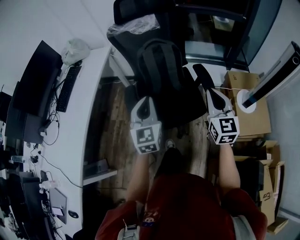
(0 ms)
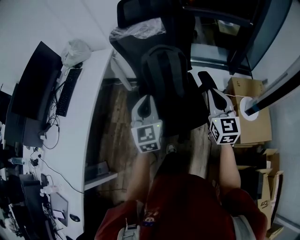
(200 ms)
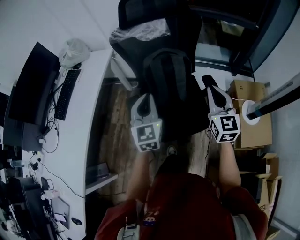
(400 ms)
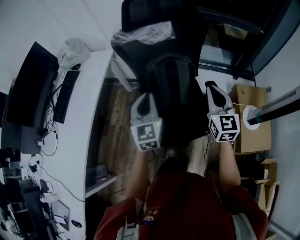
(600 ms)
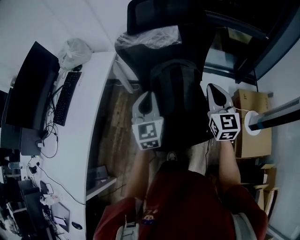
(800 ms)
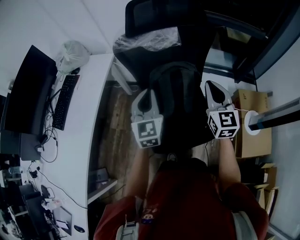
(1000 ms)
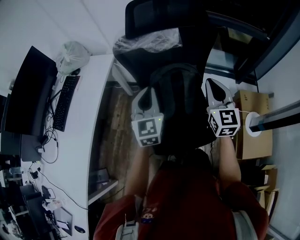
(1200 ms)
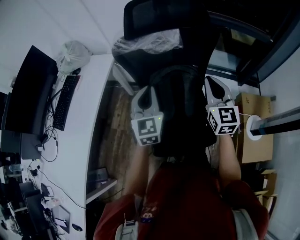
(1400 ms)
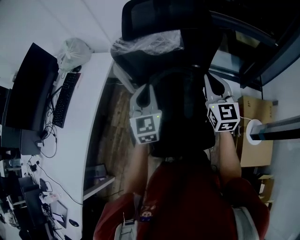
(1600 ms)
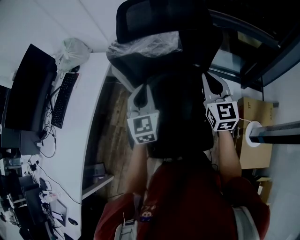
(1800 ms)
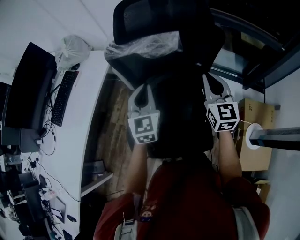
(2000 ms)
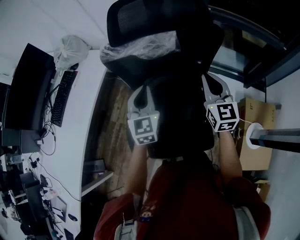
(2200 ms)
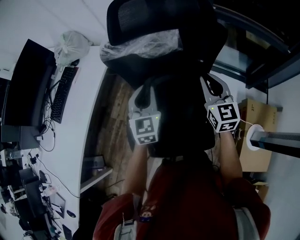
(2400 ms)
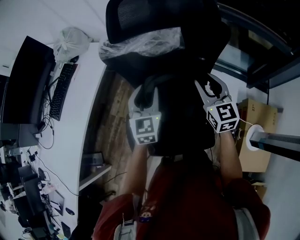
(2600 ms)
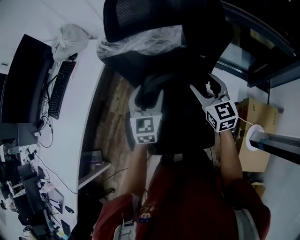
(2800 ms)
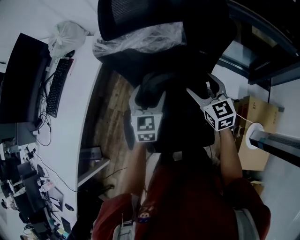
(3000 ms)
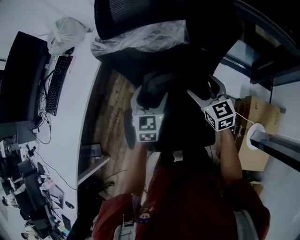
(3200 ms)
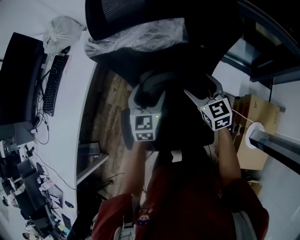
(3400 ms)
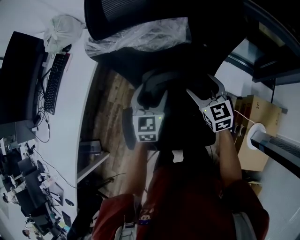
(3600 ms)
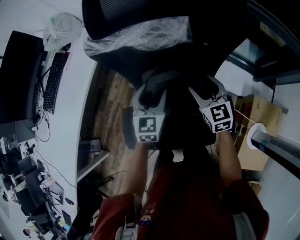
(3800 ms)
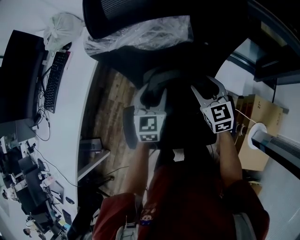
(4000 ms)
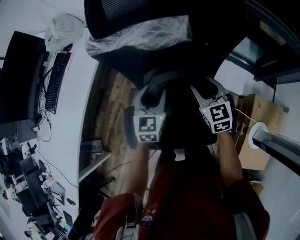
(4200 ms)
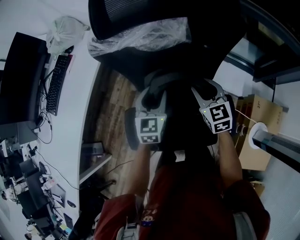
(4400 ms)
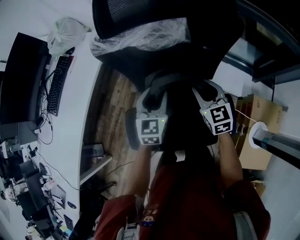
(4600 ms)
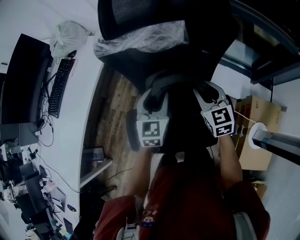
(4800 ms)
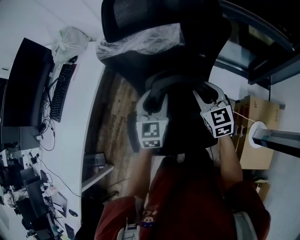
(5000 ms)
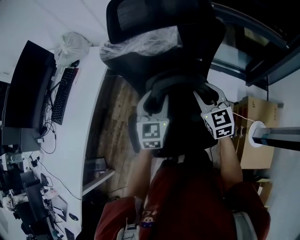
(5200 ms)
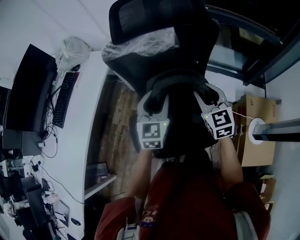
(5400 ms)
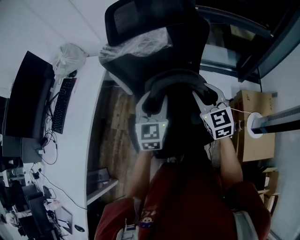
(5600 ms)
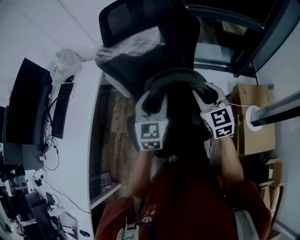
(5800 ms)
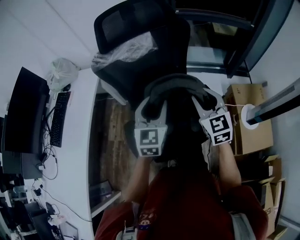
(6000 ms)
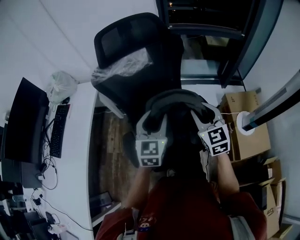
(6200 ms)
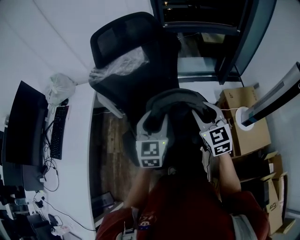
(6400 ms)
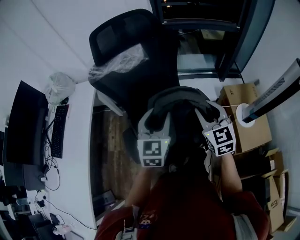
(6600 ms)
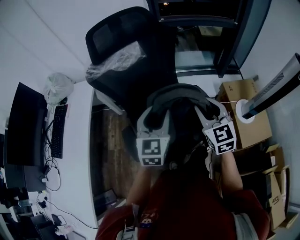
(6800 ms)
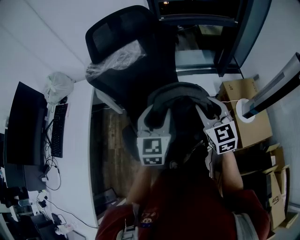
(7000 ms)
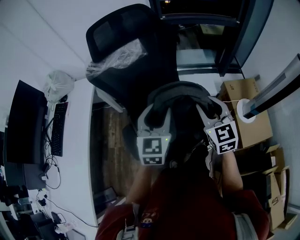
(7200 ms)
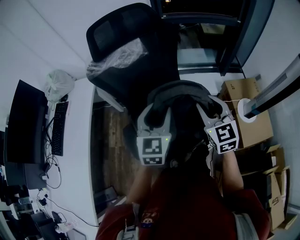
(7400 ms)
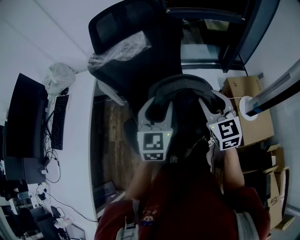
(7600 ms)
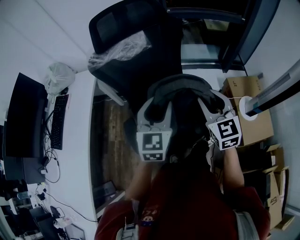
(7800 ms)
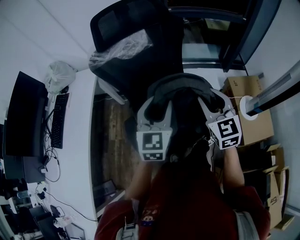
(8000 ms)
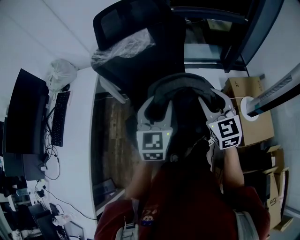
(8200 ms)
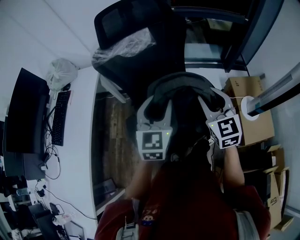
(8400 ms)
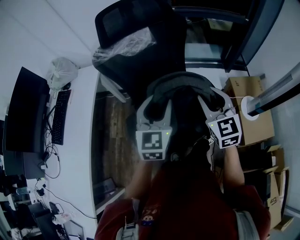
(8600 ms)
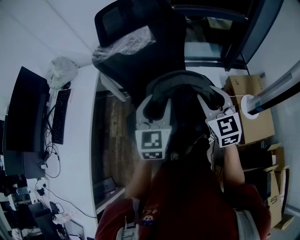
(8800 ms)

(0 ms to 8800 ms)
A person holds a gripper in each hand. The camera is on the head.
0 ms - 1400 ms: The grippers both shift forward by approximately 30 cm.
1400 ms - 3000 ms: The right gripper moves forward and downward, roughly 20 cm, turns by approximately 30 degrees, and opens its fingers. Meanwhile the left gripper is displaced downward and forward by about 15 cm, and opens its fingers.
3000 ms - 4400 ms: The right gripper moves approximately 5 cm, and closes up, while the left gripper closes.
4400 ms - 5800 ms: Both grippers travel together backward and upward, some 20 cm. The right gripper rotates some 20 degrees.
5800 ms - 7400 ms: The two grippers go approximately 10 cm backward and to the right.
7400 ms - 8800 ms: There are only small adjustments of the grippers.

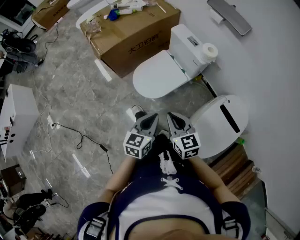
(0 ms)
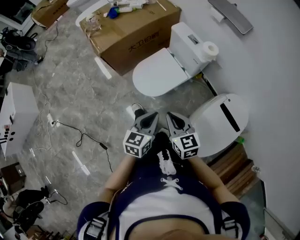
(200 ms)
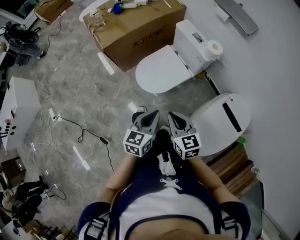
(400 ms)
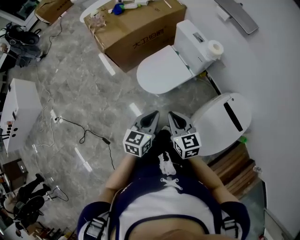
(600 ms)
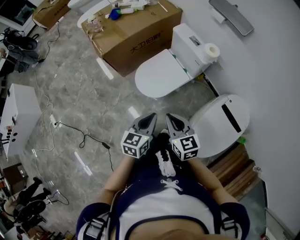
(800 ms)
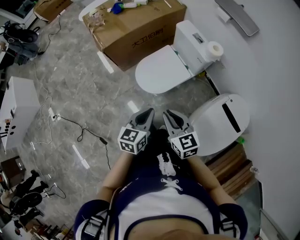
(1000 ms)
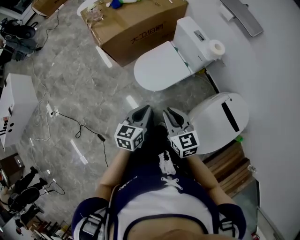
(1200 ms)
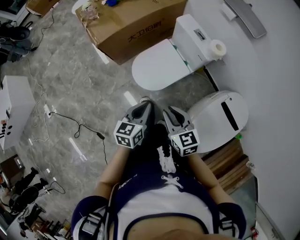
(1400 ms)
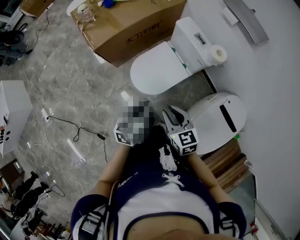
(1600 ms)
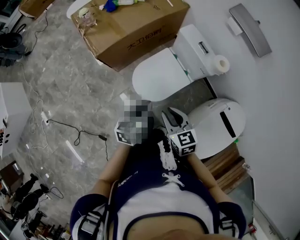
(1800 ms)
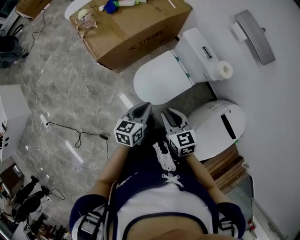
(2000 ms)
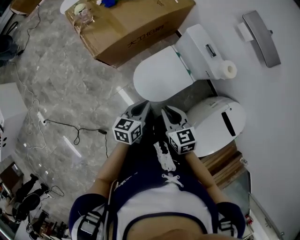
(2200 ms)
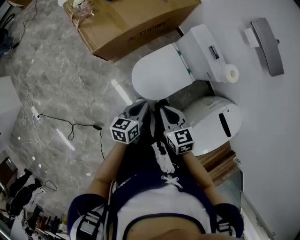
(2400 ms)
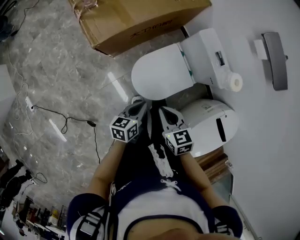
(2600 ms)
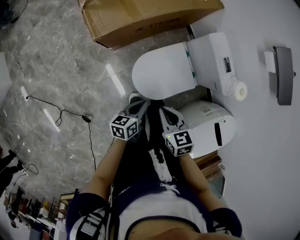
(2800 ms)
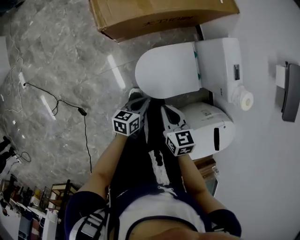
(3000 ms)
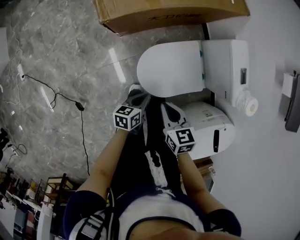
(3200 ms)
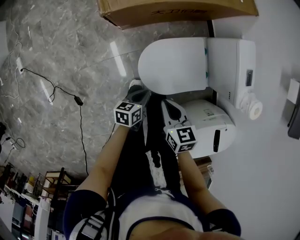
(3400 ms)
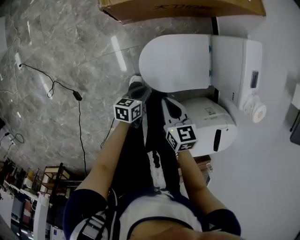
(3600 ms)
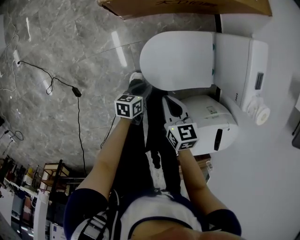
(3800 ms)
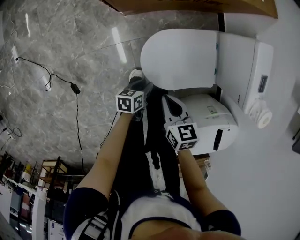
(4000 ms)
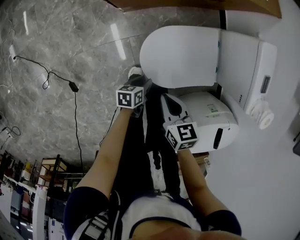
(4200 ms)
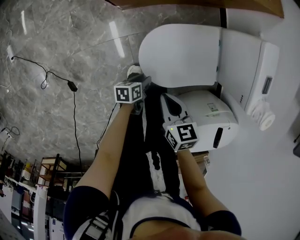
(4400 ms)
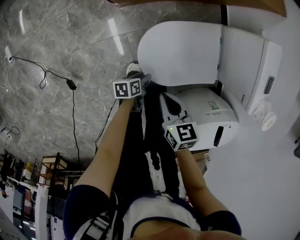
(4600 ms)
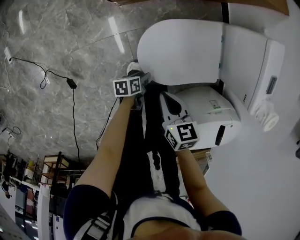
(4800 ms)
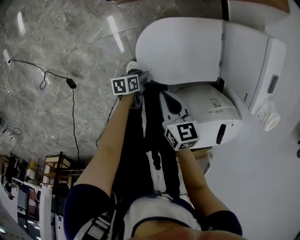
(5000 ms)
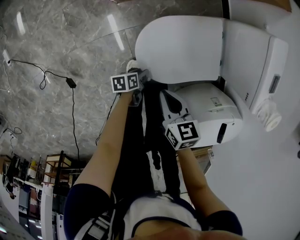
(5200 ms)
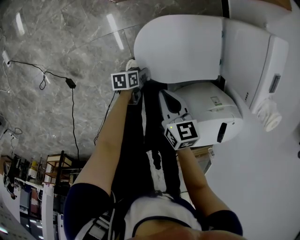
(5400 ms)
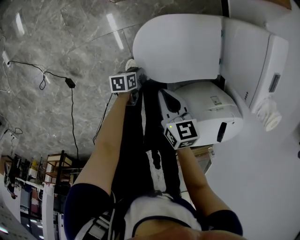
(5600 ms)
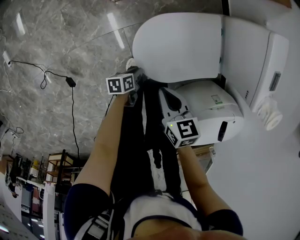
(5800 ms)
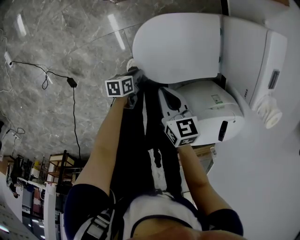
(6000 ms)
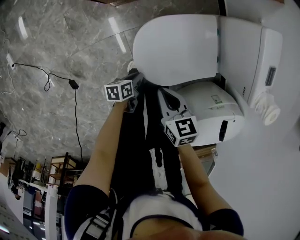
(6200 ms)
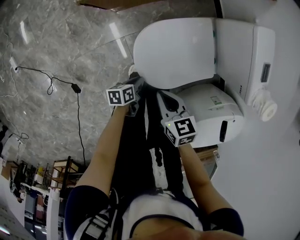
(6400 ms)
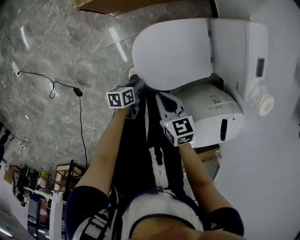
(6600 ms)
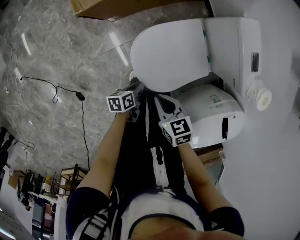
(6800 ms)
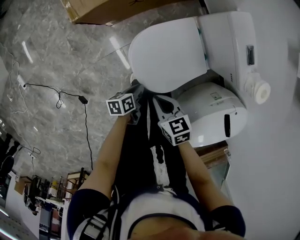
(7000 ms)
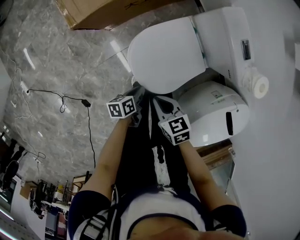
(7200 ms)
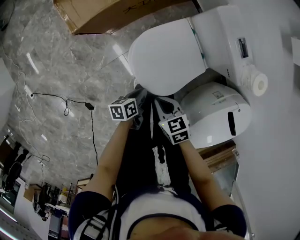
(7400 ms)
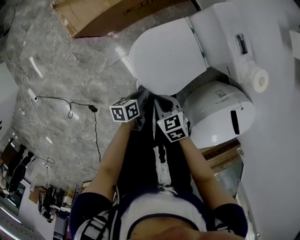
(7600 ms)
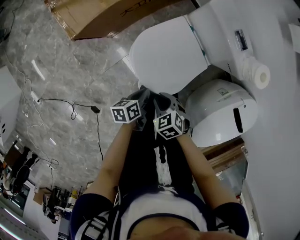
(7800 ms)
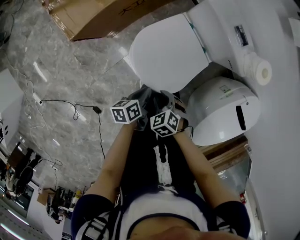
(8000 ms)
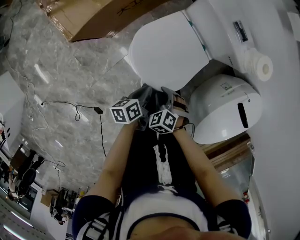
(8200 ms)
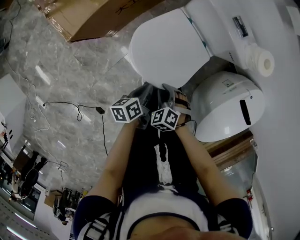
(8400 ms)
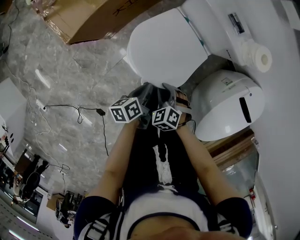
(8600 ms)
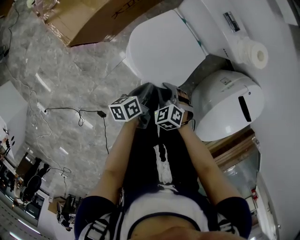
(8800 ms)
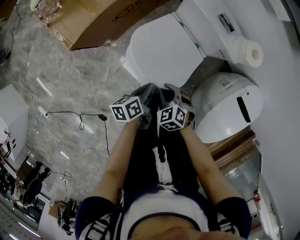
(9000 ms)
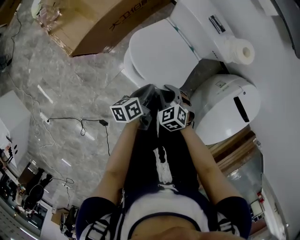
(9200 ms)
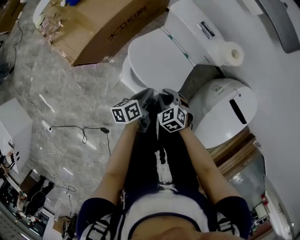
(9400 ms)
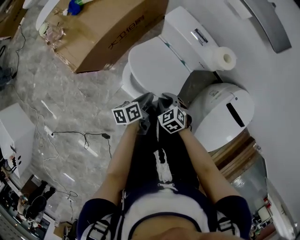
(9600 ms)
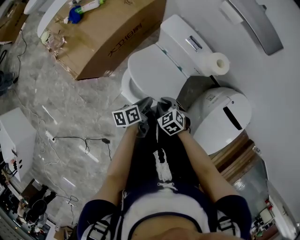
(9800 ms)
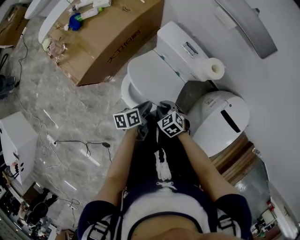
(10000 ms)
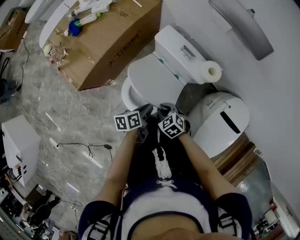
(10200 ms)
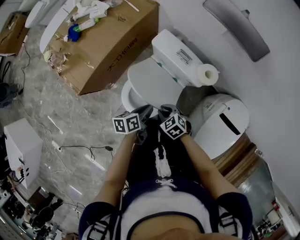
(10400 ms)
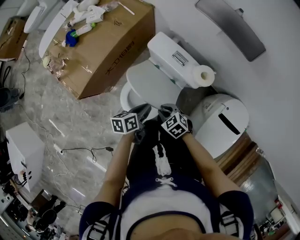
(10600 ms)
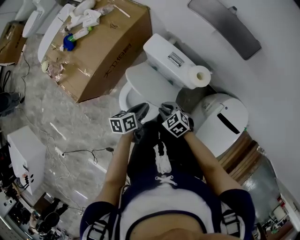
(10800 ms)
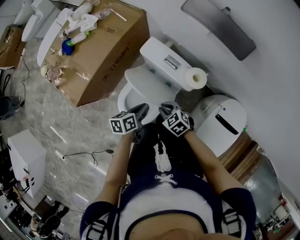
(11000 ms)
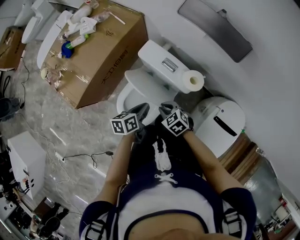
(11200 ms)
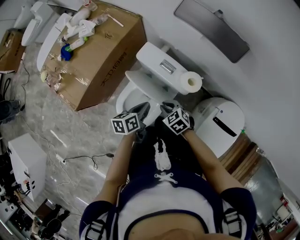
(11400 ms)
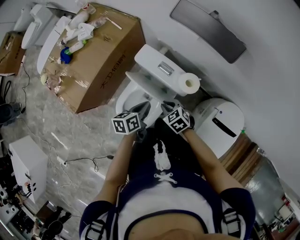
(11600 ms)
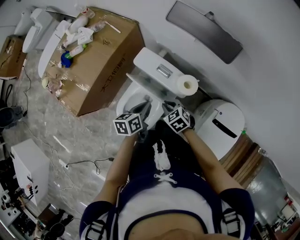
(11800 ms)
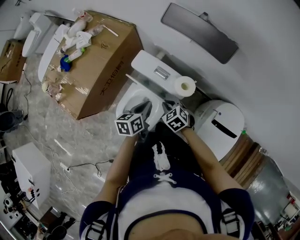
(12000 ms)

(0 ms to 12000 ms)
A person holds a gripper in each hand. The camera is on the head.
0 ms - 1600 ms: The left gripper shifts some 15 cm forward and to the left, while the right gripper shifts some 10 cm forward.
1600 ms - 3000 ms: The left gripper travels downward, forward and to the left by approximately 25 cm, and changes its angle by some 30 degrees; the right gripper travels forward, downward and to the left by roughly 20 cm.
3000 ms - 4400 ms: The left gripper moves downward, approximately 20 cm, rotates roughly 20 degrees, and opens up, while the right gripper travels downward by roughly 15 cm.
4400 ms - 6000 ms: The left gripper closes its fingers.
6000 ms - 7600 ms: The left gripper travels upward by about 20 cm. The right gripper moves roughly 5 cm.
7600 ms - 9000 ms: The left gripper goes approximately 5 cm upward; the right gripper rotates some 20 degrees.
9000 ms - 10400 ms: Both grippers move upward, to the right and forward, some 15 cm.
10400 ms - 12000 ms: The right gripper travels to the right and forward by approximately 15 cm, while the left gripper is displaced forward, to the right and upward by about 15 cm.

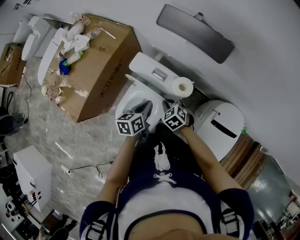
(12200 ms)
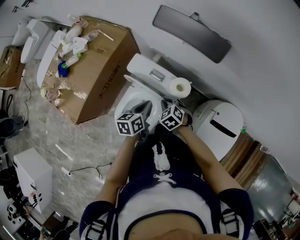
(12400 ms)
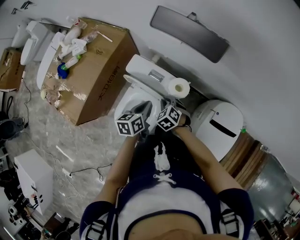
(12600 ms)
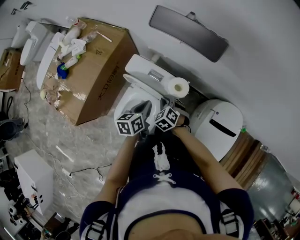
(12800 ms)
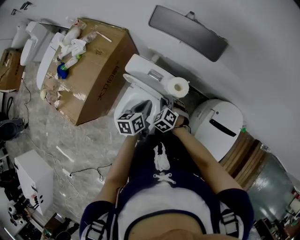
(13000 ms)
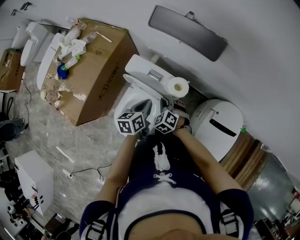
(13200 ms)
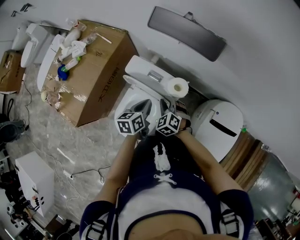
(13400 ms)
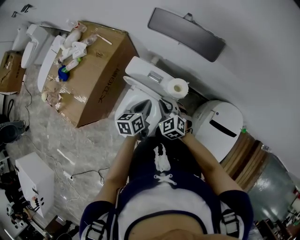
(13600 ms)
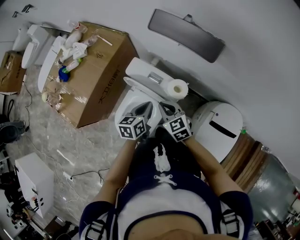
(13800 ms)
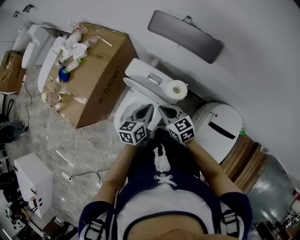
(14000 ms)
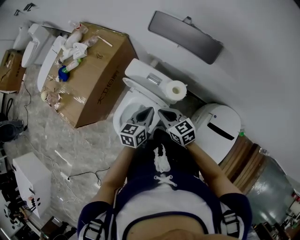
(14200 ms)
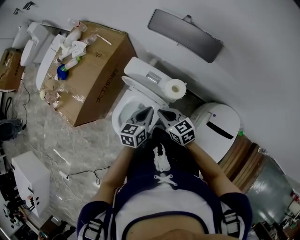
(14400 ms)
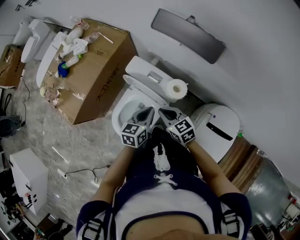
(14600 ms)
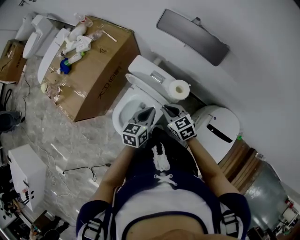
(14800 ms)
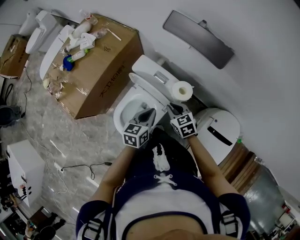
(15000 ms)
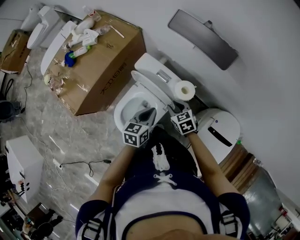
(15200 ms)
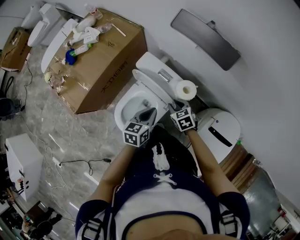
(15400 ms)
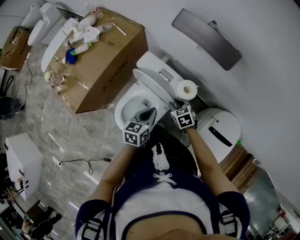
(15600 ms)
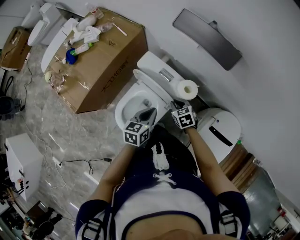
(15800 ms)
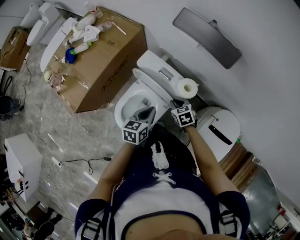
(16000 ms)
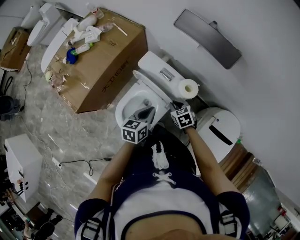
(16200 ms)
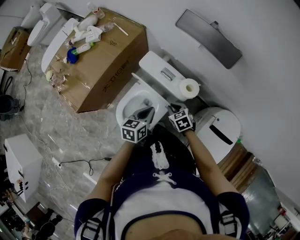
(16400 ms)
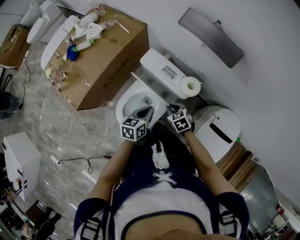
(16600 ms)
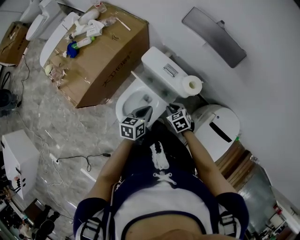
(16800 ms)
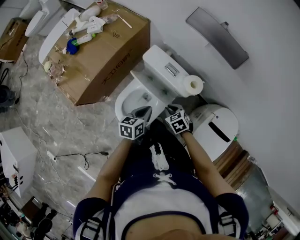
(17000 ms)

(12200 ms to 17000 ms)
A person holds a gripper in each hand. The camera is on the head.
12200 ms - 13800 ms: The right gripper goes about 10 cm upward, and turns by roughly 20 degrees.
13800 ms - 15400 ms: The right gripper moves downward, some 10 cm.
15400 ms - 17000 ms: The left gripper travels to the left by some 5 cm. The right gripper heads backward and to the left, covering roughly 10 cm.
